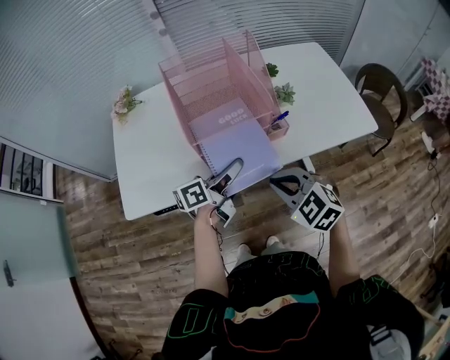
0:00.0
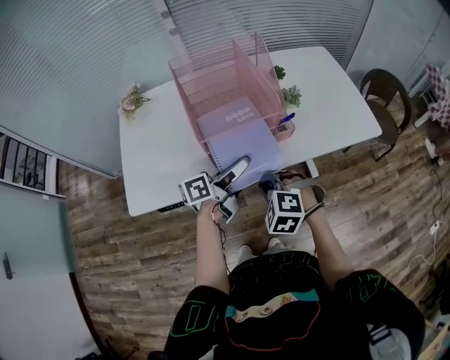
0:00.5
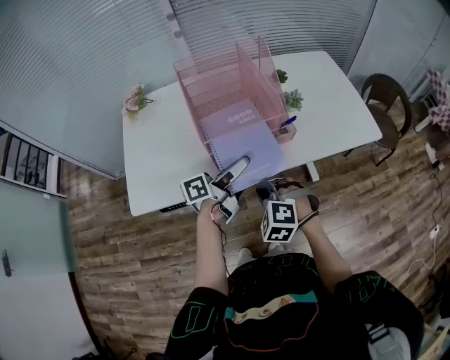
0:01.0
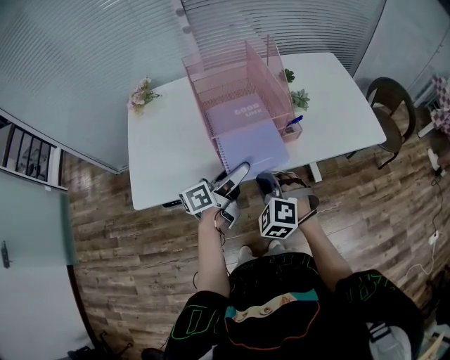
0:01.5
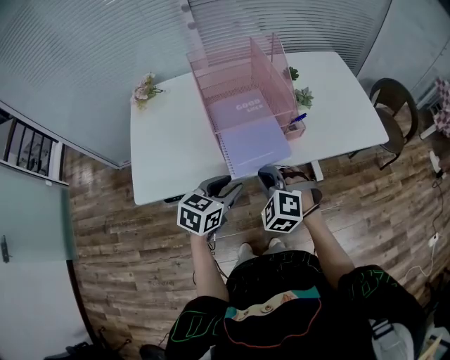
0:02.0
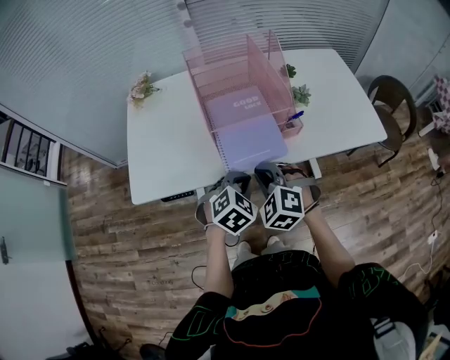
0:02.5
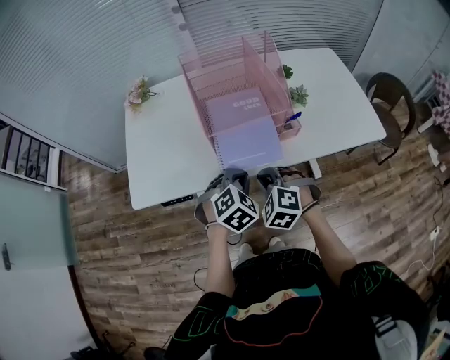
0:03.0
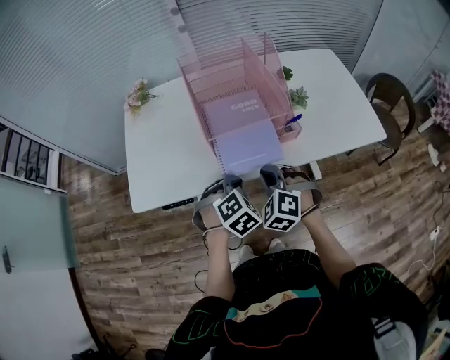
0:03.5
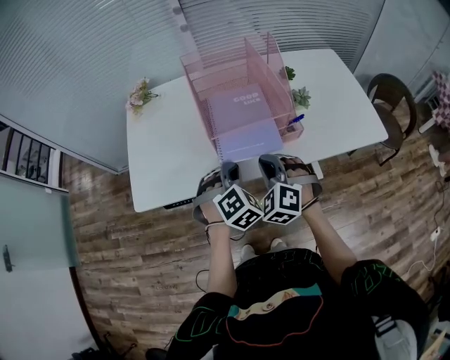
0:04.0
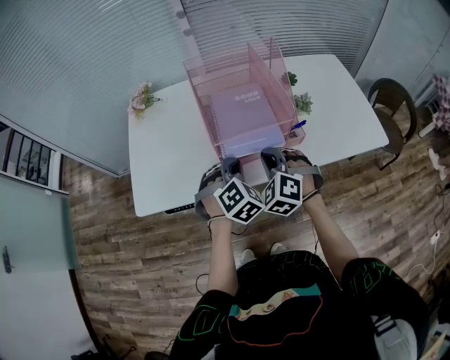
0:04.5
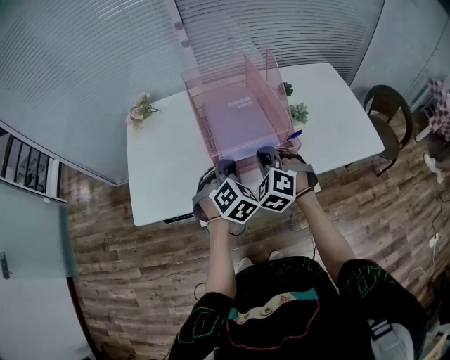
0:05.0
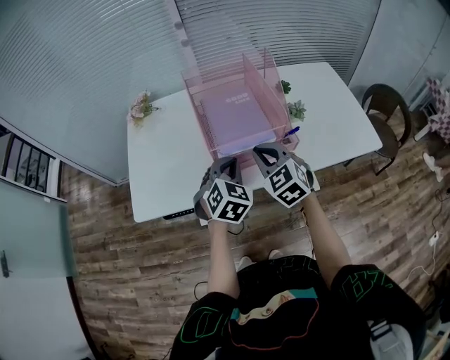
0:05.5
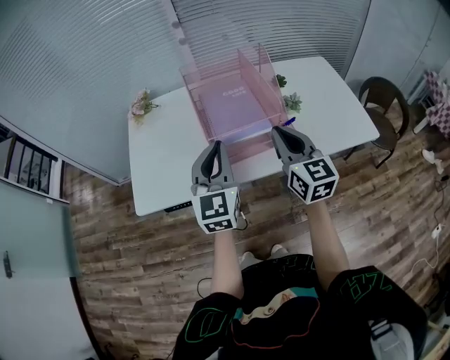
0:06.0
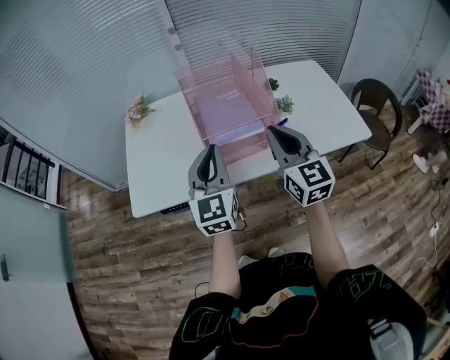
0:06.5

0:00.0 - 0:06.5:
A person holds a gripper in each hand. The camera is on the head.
0:00.0 - 0:02.0: The left gripper shifts about 10 cm backward, tips its fingers downward by some 30 degrees, and opens and closes again. The right gripper is displaced to the left by approximately 10 cm, and turns by about 30 degrees.
0:02.0 - 0:04.5: The grippers both shift forward by some 10 cm. The left gripper swivels some 50 degrees, and closes its fingers.
0:04.5 - 0:06.5: The two grippers go some 15 cm upward. The right gripper angles its fingers upward, by roughly 40 degrees. Meanwhile the left gripper angles its fingers upward, by approximately 50 degrees.

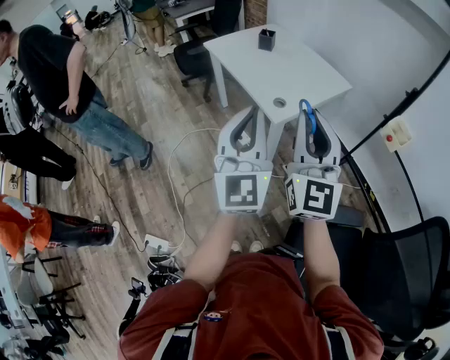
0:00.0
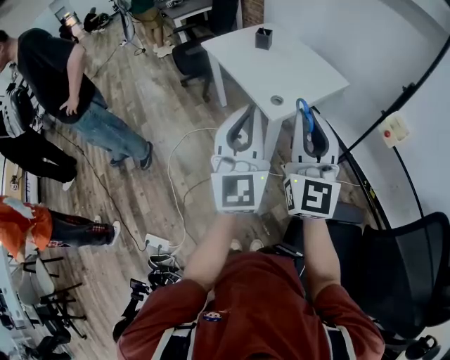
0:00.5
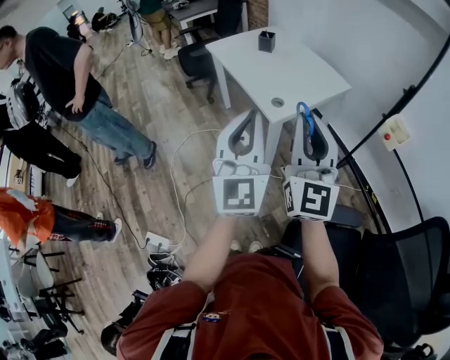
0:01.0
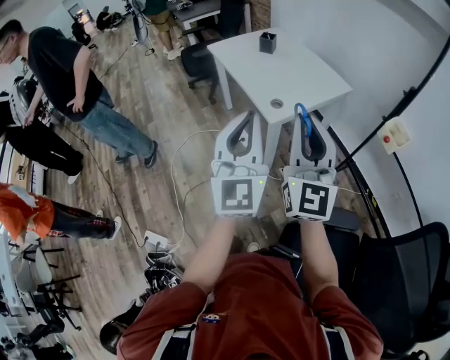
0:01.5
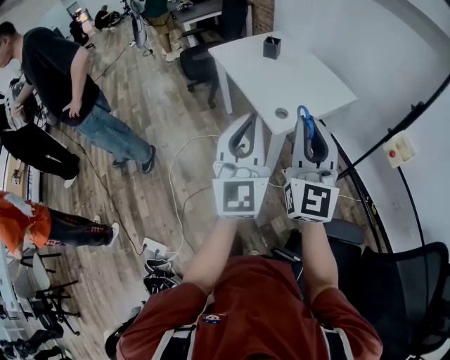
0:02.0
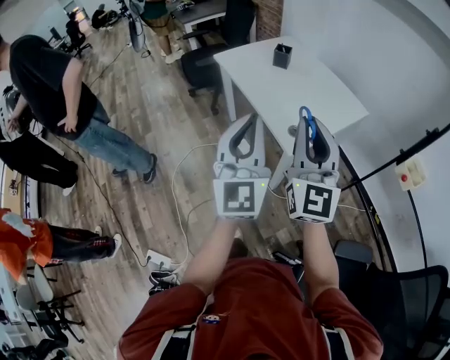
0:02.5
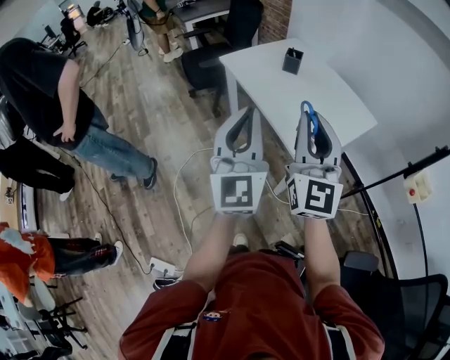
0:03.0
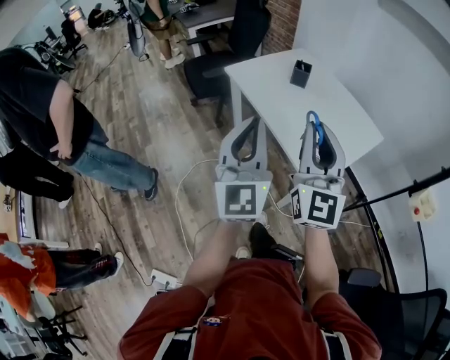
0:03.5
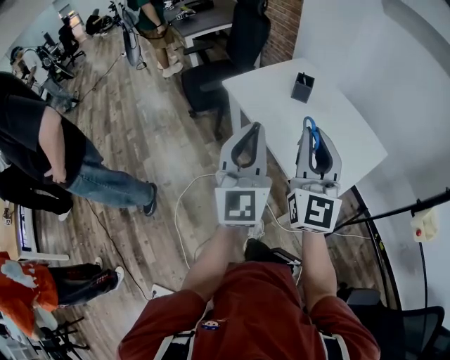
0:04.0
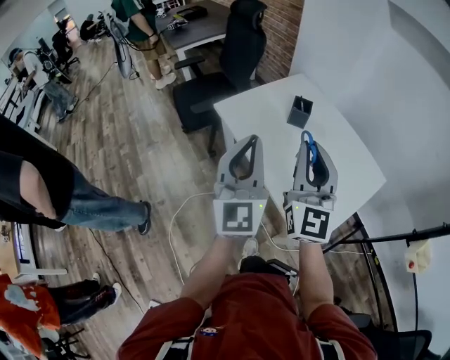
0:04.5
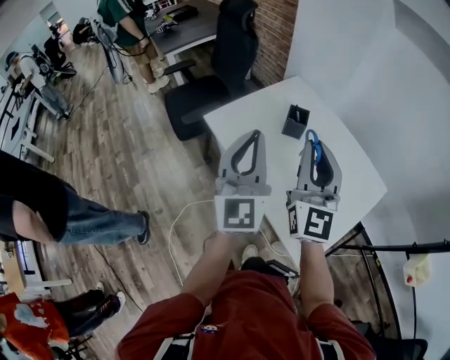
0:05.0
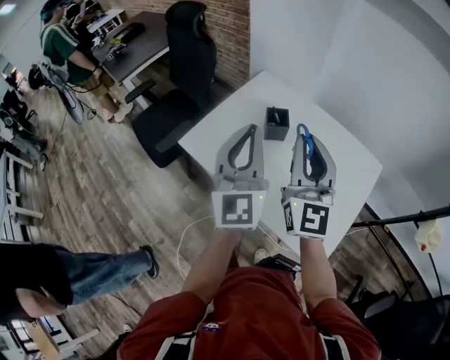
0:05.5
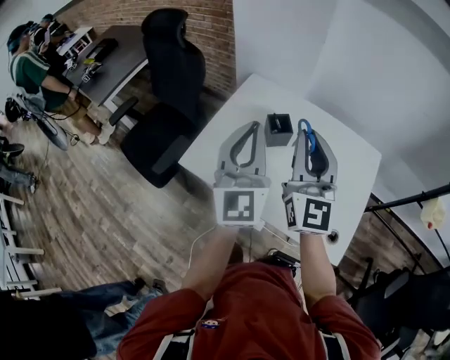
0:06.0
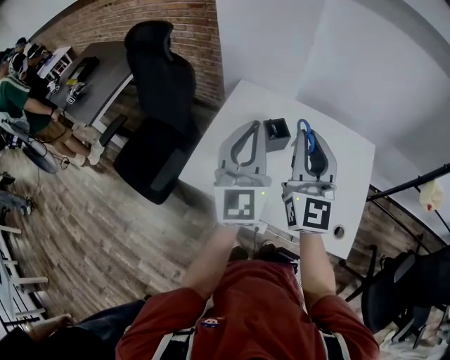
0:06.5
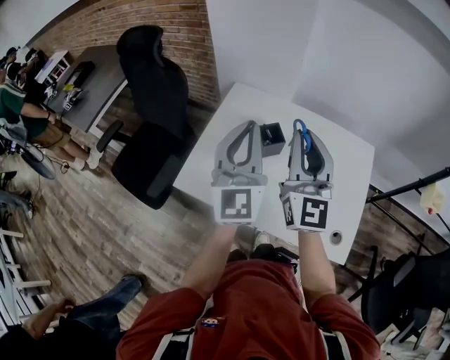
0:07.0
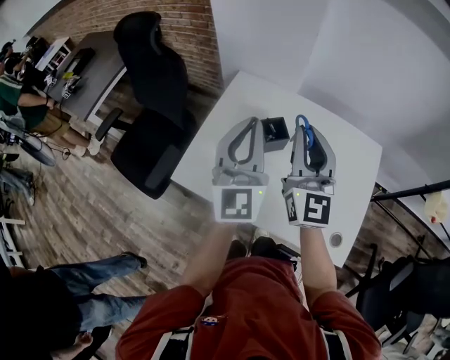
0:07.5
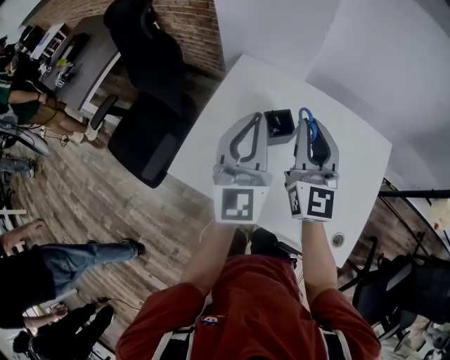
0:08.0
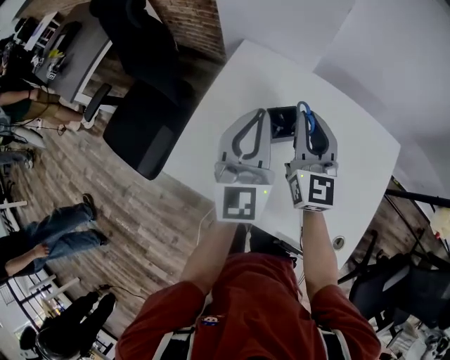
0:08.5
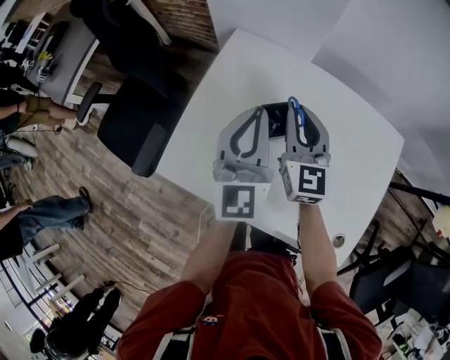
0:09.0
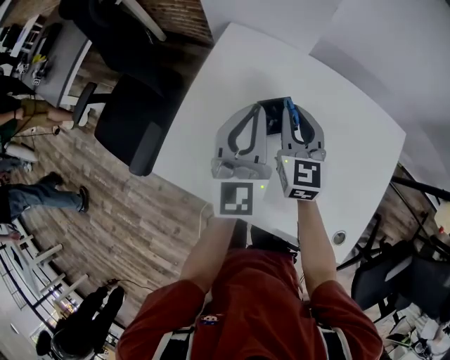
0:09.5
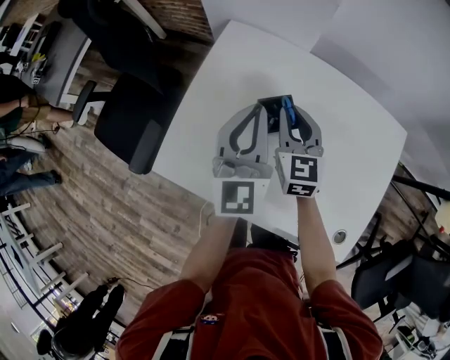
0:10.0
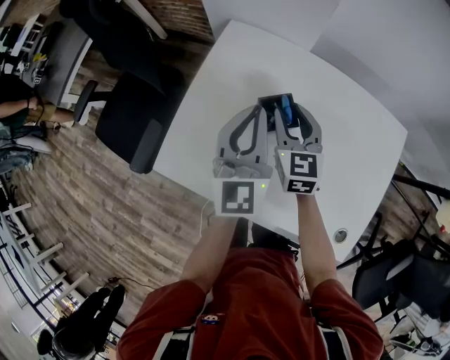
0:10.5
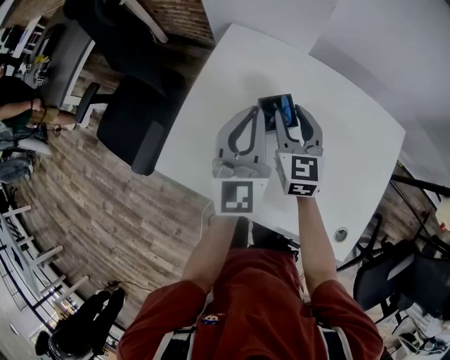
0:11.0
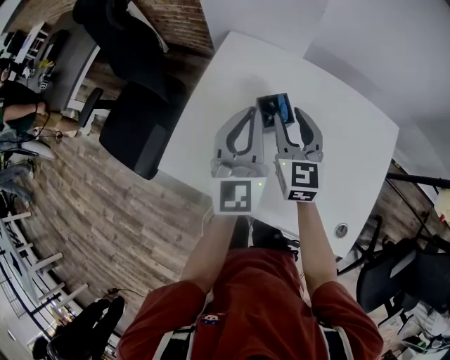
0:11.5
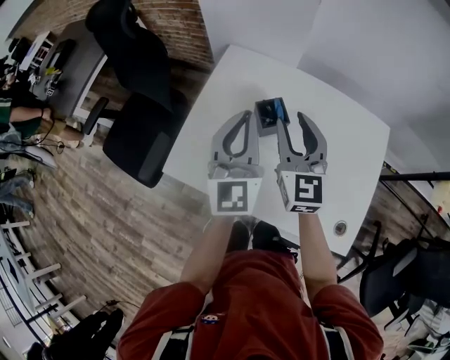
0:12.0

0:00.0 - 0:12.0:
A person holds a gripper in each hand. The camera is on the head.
0:00.0 - 0:02.0: The grippers stay close to where they were, moving slightly.
0:02.0 - 0:04.0: Both grippers travel together forward and to the left, roughly 35 cm.
0:04.0 - 0:06.0: The right gripper changes place by some 35 cm, and swivels approximately 30 degrees, while the left gripper moves approximately 40 cm, and changes its angle by roughly 30 degrees.
0:06.0 - 0:08.0: The two grippers go about 15 cm forward and downward.
0:08.0 - 0:10.0: The left gripper shifts about 15 cm downward and forward. The right gripper moves downward and forward, approximately 20 cm, and turns by some 30 degrees.
0:10.0 - 0:12.0: The right gripper goes roughly 15 cm upward and backward, and opens its fingers. Meanwhile the left gripper moves upward and backward, roughly 10 cm.

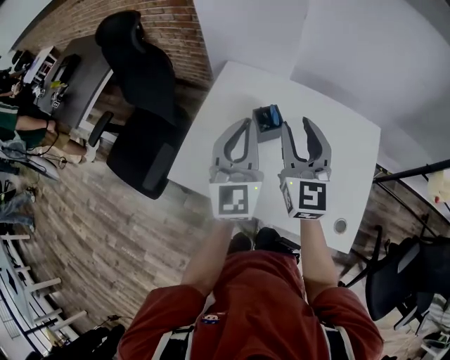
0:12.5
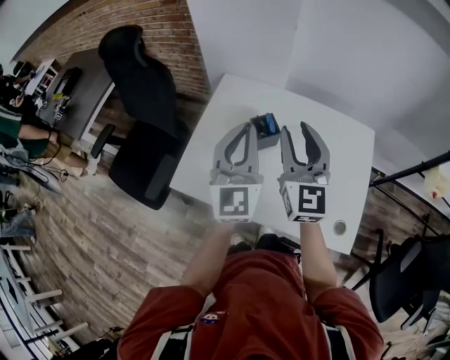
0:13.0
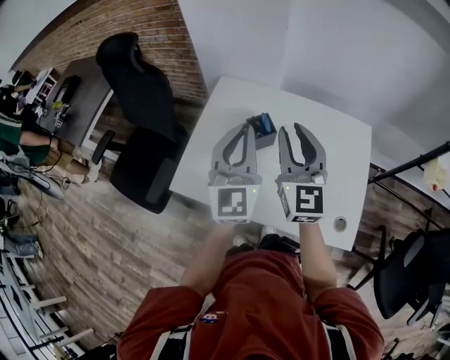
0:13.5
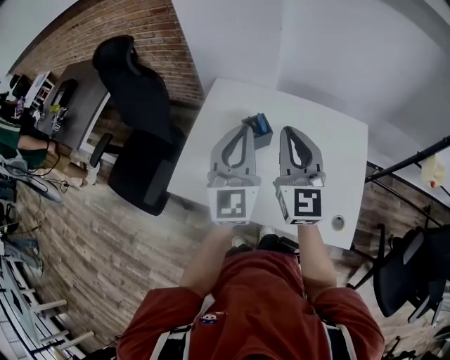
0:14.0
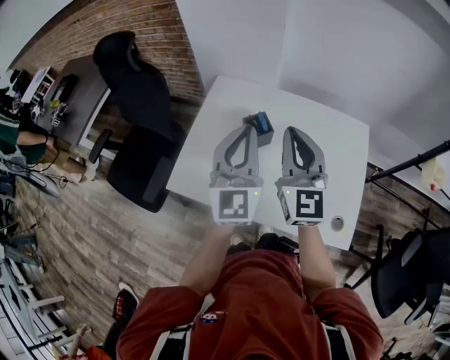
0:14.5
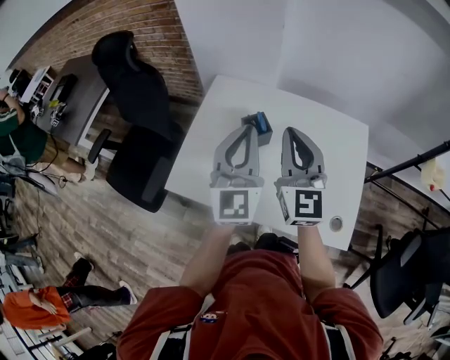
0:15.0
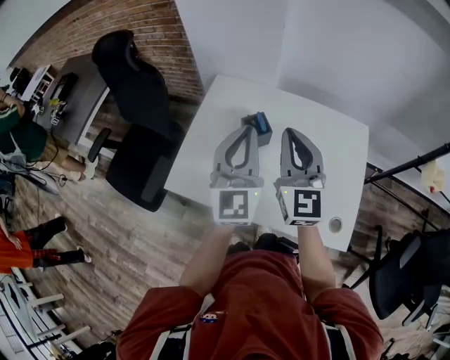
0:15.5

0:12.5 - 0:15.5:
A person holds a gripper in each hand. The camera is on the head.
0:12.5 - 0:14.0: The right gripper changes place by some 5 cm, and closes up.
0:14.0 - 0:15.5: The grippers move only a little.

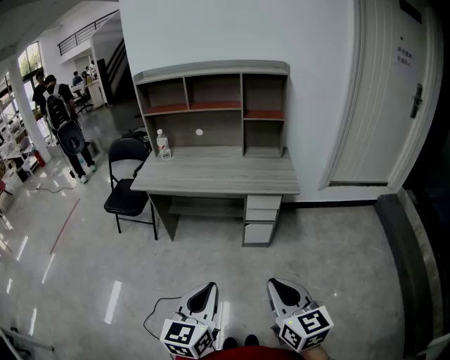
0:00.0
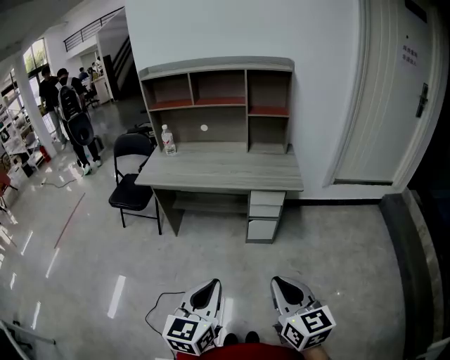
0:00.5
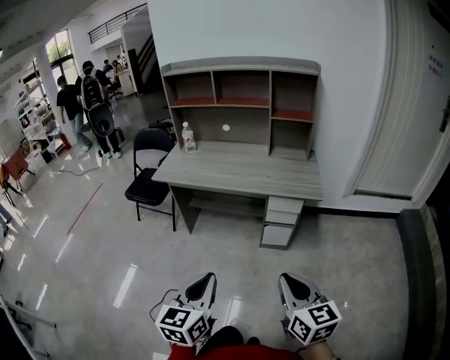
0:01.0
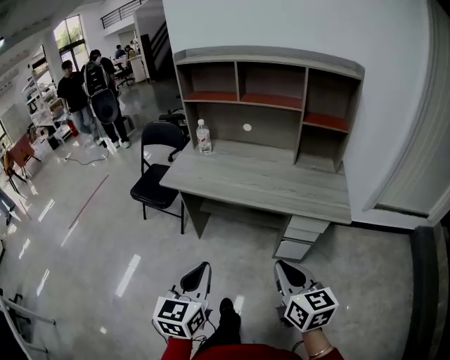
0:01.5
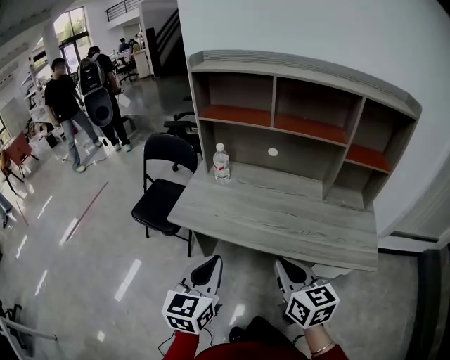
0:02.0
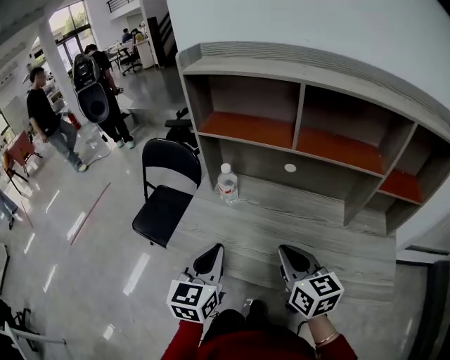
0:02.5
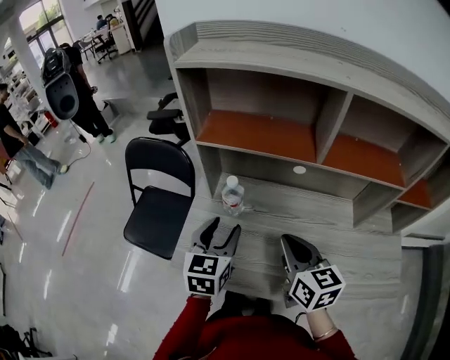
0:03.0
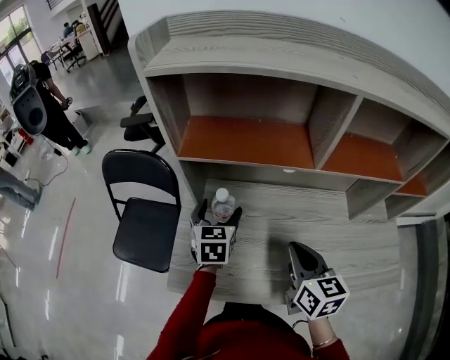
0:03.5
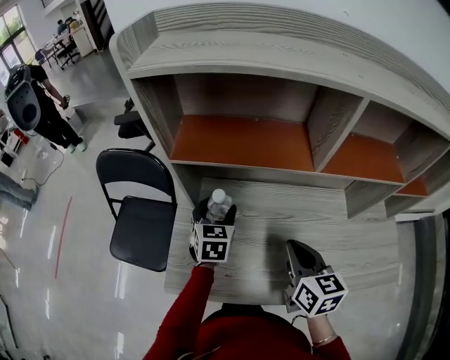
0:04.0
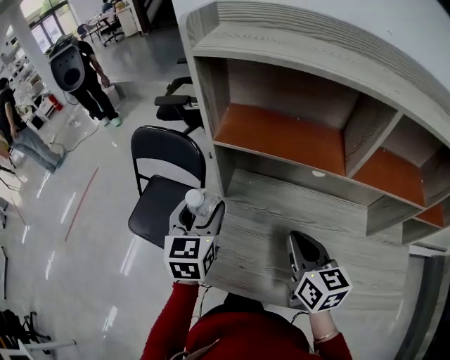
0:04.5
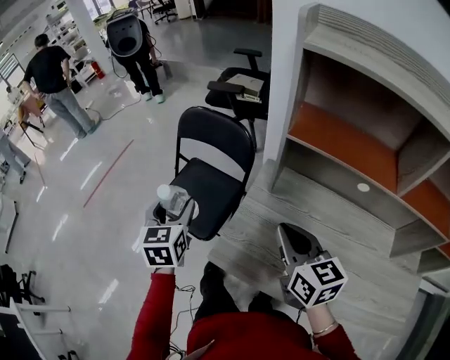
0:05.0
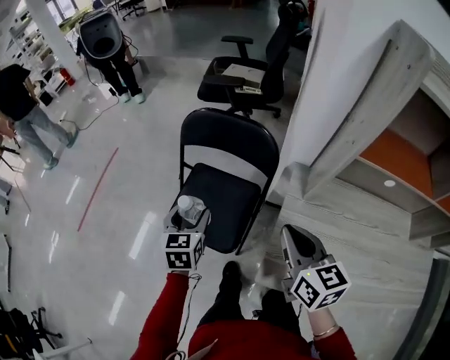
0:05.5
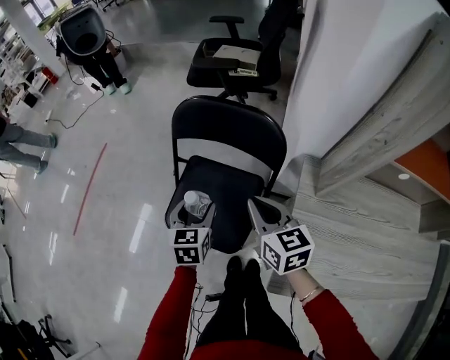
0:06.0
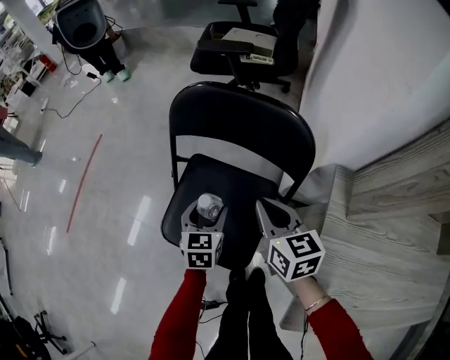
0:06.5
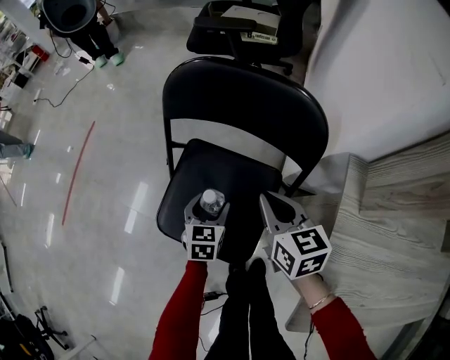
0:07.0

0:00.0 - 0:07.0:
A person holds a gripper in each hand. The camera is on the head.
0:00.0 - 0:02.0: The pair of grippers is taken forward, some 40 cm.
0:02.0 - 0:03.5: The right gripper shifts approximately 25 cm forward, while the left gripper heads forward, covering roughly 40 cm, and opens its fingers.
0:03.5 - 0:05.0: The right gripper shifts by about 20 cm, and turns by approximately 30 degrees. The left gripper ends up about 35 cm from where it was, and changes its angle by approximately 30 degrees.
0:05.0 - 0:07.0: The left gripper heads downward and forward, covering approximately 40 cm, and turns by some 30 degrees; the right gripper heads forward, downward and to the left, covering about 35 cm.
